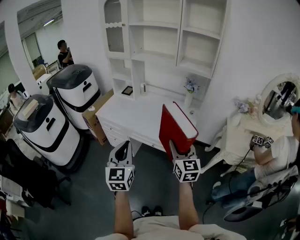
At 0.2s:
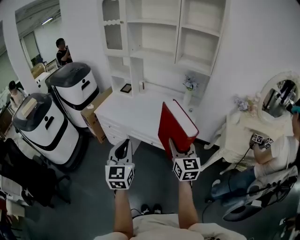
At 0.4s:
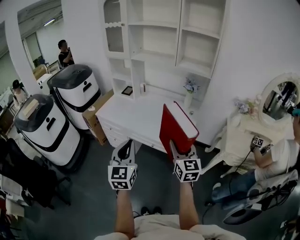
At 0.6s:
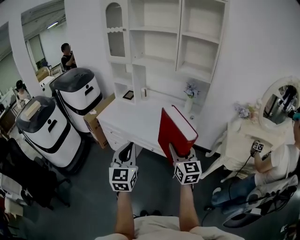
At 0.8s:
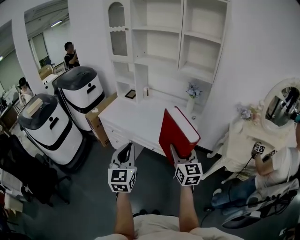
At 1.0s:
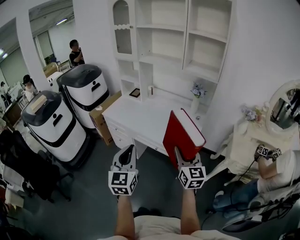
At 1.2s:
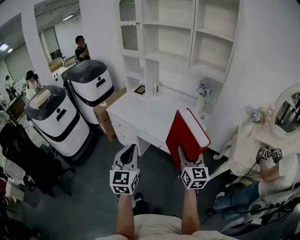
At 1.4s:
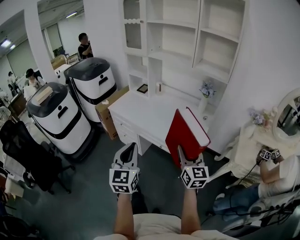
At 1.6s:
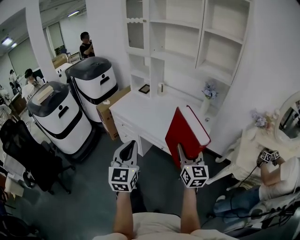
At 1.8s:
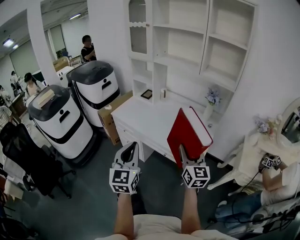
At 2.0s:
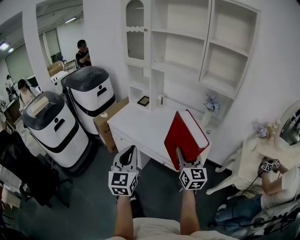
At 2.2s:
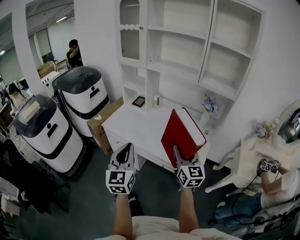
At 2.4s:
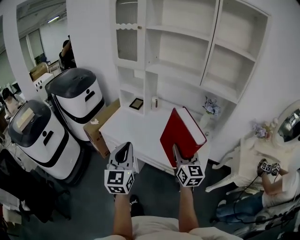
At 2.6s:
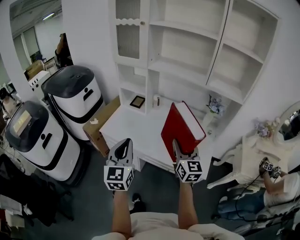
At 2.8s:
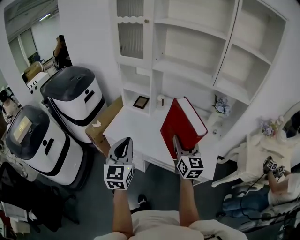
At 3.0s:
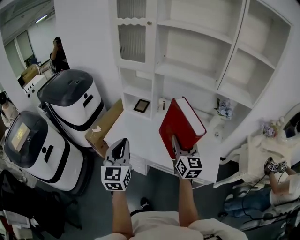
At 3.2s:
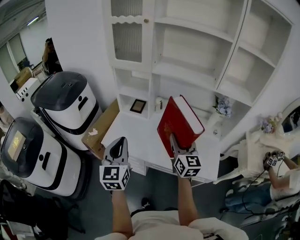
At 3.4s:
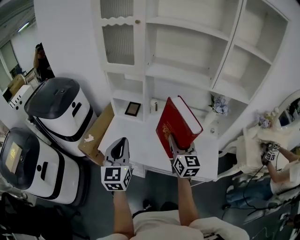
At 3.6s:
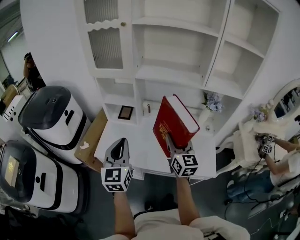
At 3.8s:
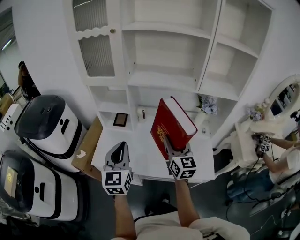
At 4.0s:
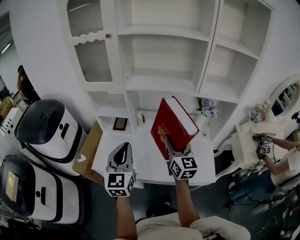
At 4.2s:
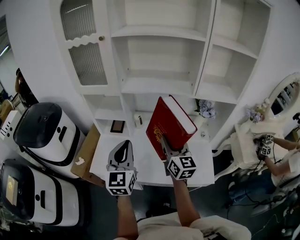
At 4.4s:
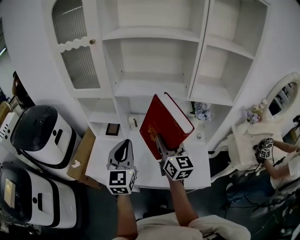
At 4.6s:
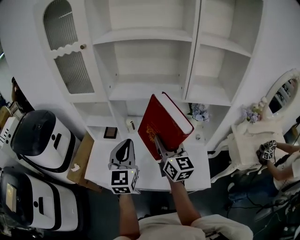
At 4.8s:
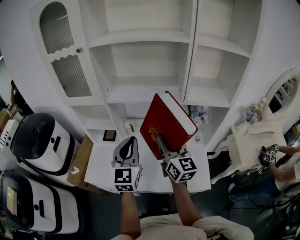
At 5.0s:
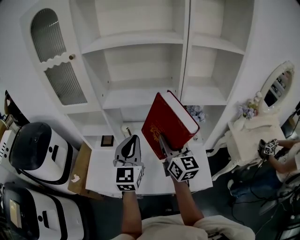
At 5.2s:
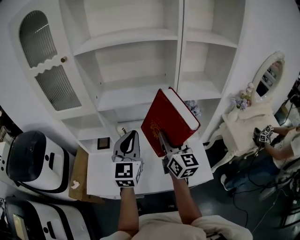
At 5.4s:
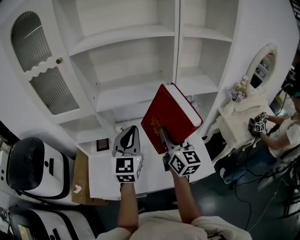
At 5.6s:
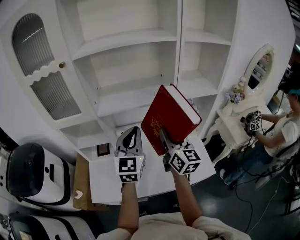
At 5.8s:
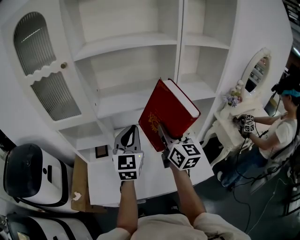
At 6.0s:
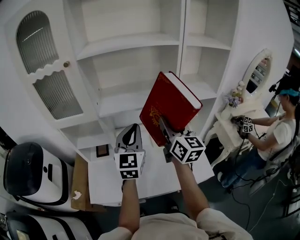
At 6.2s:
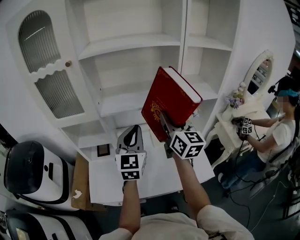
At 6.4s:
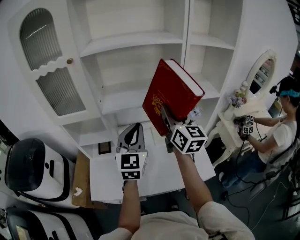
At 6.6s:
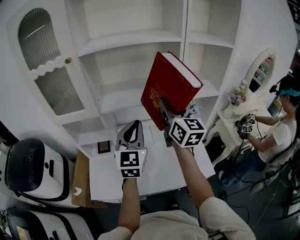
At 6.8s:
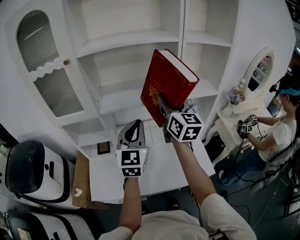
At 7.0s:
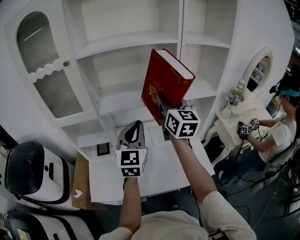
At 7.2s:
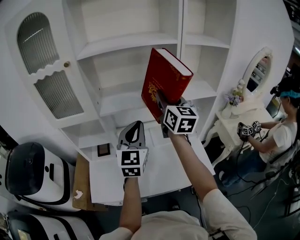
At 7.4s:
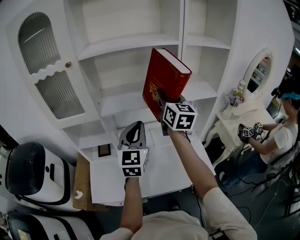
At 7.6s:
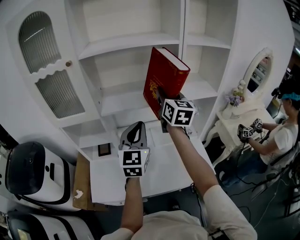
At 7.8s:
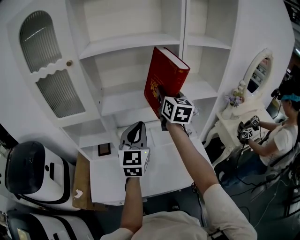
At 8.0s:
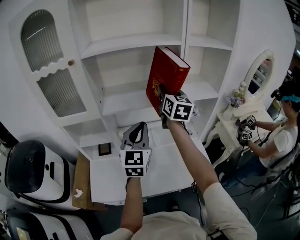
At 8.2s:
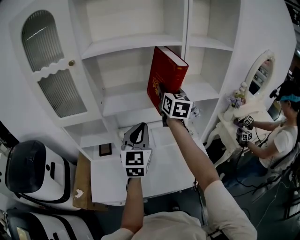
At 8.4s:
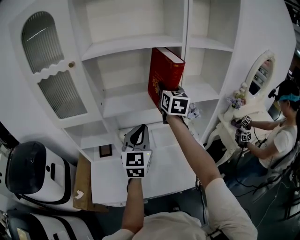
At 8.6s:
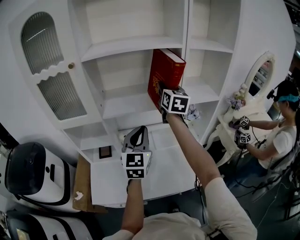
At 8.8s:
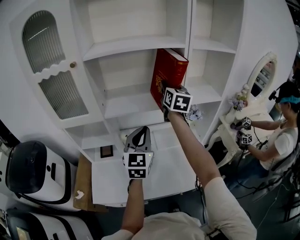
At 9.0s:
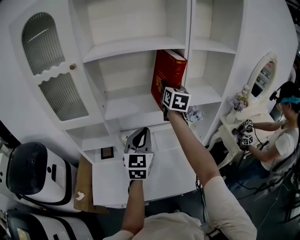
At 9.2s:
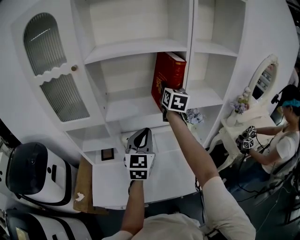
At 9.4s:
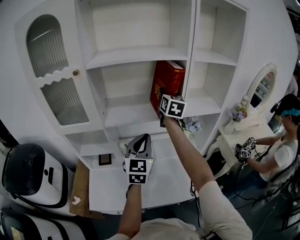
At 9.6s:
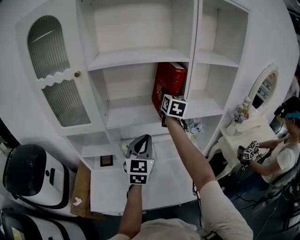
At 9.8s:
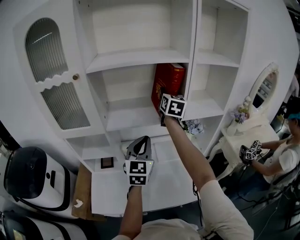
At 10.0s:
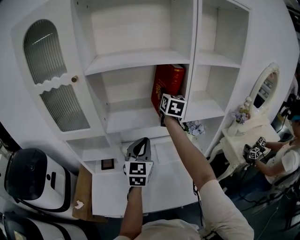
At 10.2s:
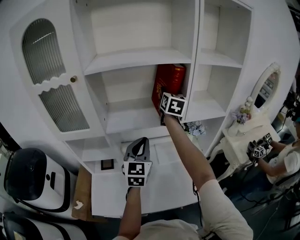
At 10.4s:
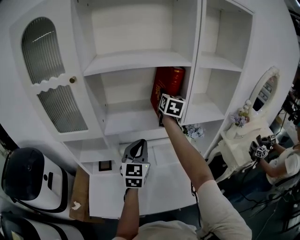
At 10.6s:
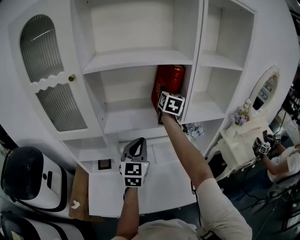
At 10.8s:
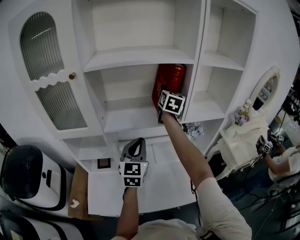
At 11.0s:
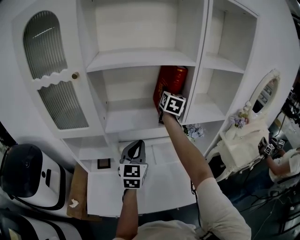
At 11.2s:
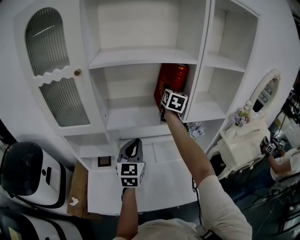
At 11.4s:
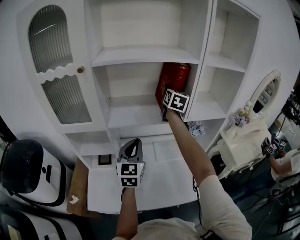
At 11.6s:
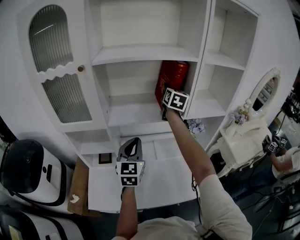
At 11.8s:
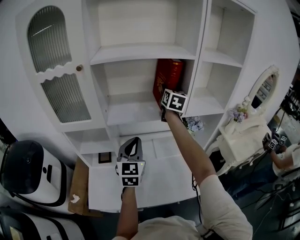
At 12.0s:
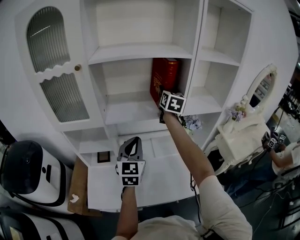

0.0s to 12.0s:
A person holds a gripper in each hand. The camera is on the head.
0.0s to 1.6s: The grippers make only small movements.
1.6s to 3.0s: The grippers both shift forward and to the left by approximately 40 cm.
3.0s to 4.4s: The right gripper is displaced forward by about 15 cm, while the left gripper goes approximately 20 cm forward and to the right.
4.4s to 6.0s: The right gripper shifts about 10 cm upward and forward; the left gripper travels forward and upward by about 15 cm.
6.0s to 7.6s: The right gripper shifts roughly 10 cm forward and upward.
7.6s to 9.0s: The right gripper heads forward, covering some 10 cm.
9.0s to 10.4s: The right gripper shifts about 5 cm forward. Meanwhile the left gripper ends up approximately 5 cm from where it was.
10.4s to 12.0s: The left gripper ends up approximately 5 cm from where it was.

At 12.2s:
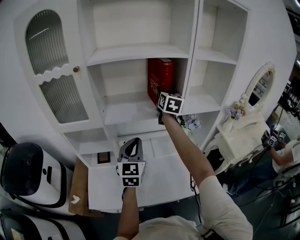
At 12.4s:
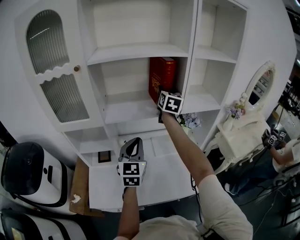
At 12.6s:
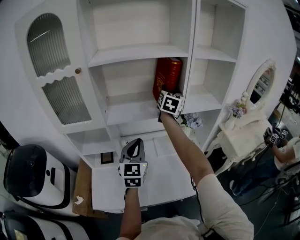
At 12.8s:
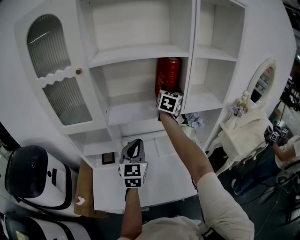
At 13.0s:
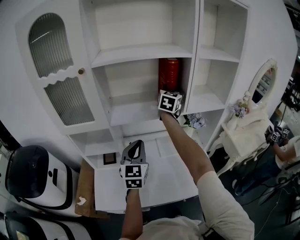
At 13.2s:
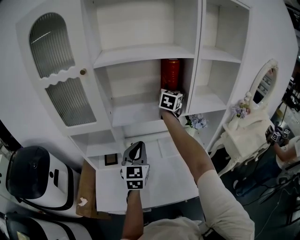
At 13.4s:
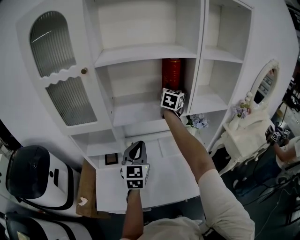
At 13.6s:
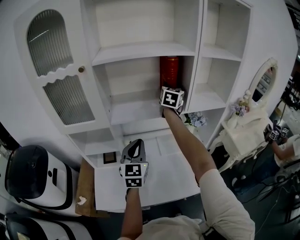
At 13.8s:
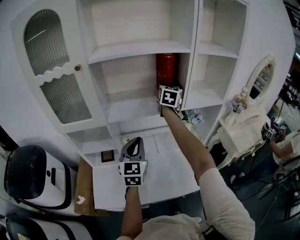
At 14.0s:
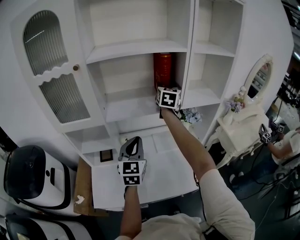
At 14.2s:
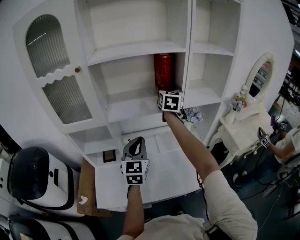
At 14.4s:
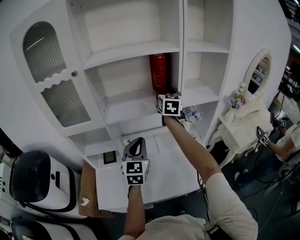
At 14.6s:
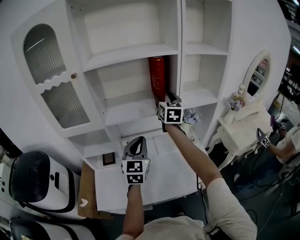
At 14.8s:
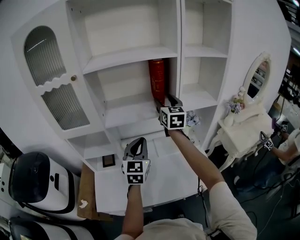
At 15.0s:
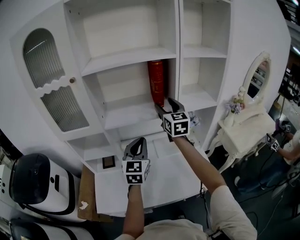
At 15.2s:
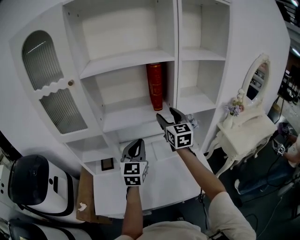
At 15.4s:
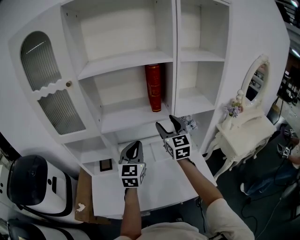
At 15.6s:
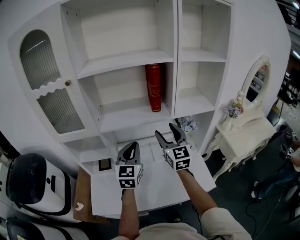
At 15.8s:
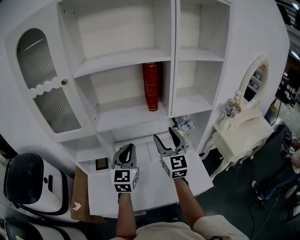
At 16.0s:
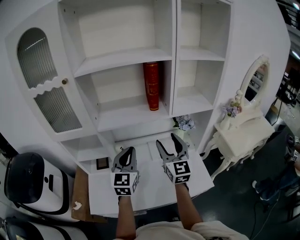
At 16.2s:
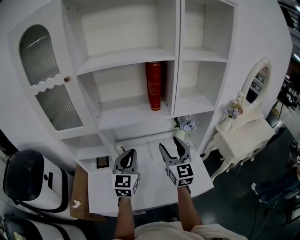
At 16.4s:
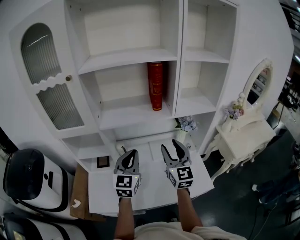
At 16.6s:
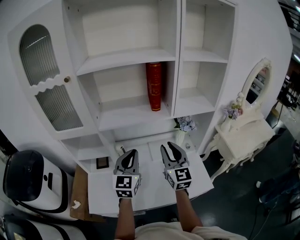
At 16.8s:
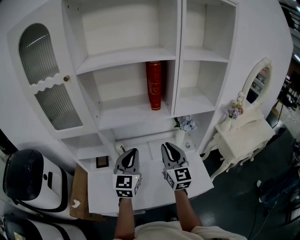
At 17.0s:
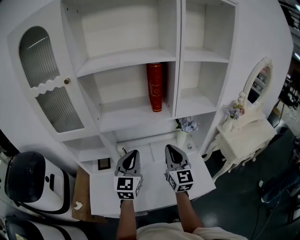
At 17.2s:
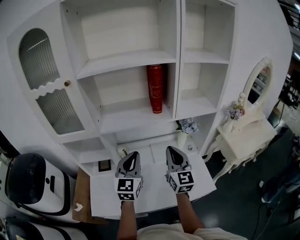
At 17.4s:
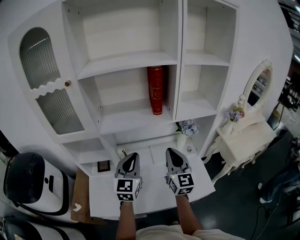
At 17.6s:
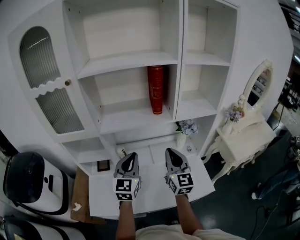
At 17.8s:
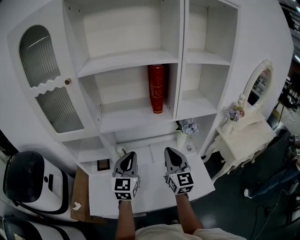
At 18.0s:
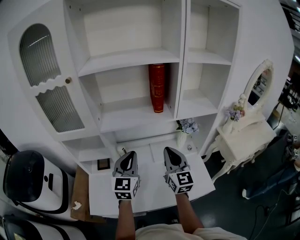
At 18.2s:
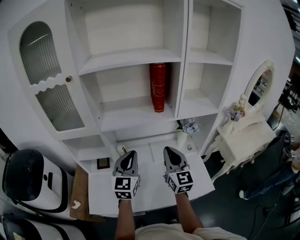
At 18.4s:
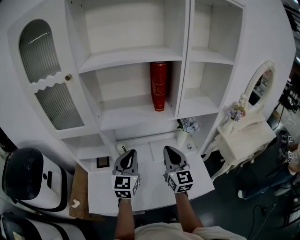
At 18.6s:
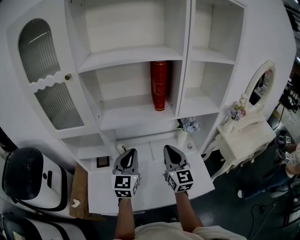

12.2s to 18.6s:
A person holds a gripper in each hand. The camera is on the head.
12.2s to 13.8s: The grippers stay close to where they were, moving slightly.
13.8s to 15.4s: The right gripper moves backward, some 15 cm, and turns by about 30 degrees, while the left gripper changes place by approximately 5 cm.
15.4s to 17.0s: The right gripper travels backward and downward by approximately 10 cm, and closes up.
17.0s to 18.6s: There are only small adjustments of the grippers.

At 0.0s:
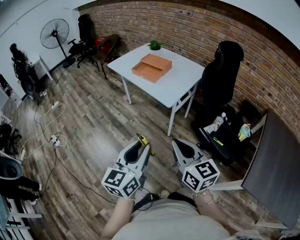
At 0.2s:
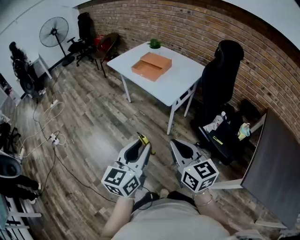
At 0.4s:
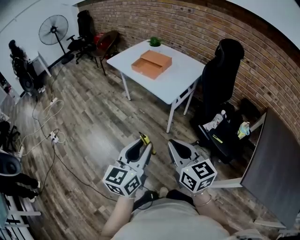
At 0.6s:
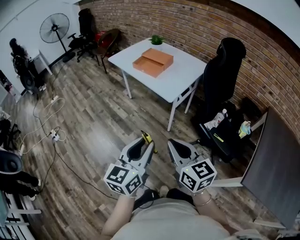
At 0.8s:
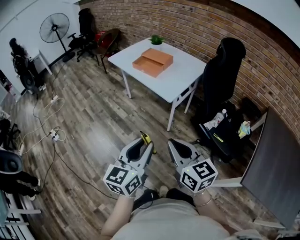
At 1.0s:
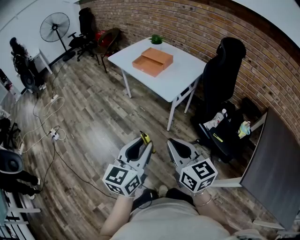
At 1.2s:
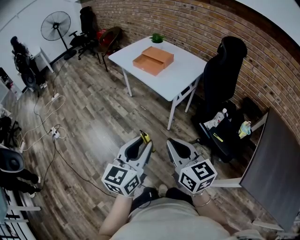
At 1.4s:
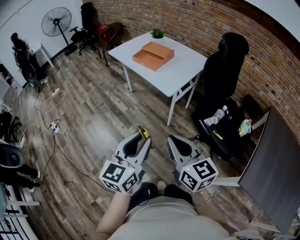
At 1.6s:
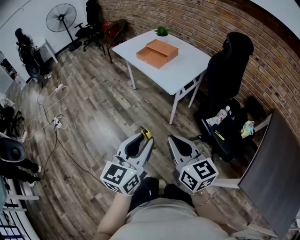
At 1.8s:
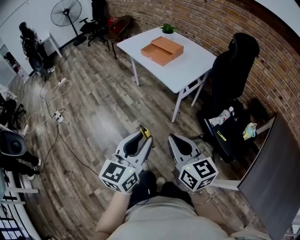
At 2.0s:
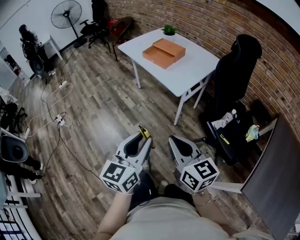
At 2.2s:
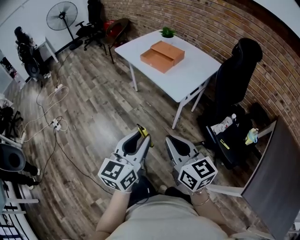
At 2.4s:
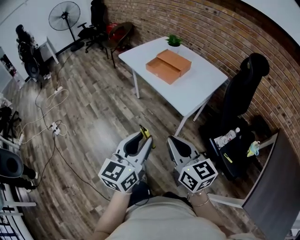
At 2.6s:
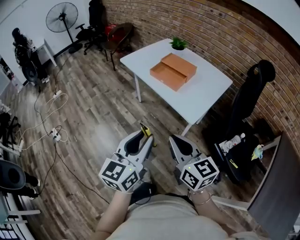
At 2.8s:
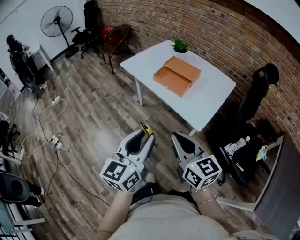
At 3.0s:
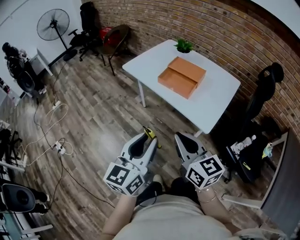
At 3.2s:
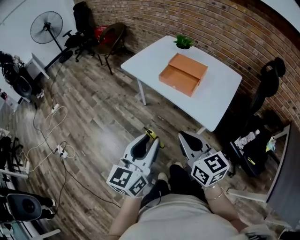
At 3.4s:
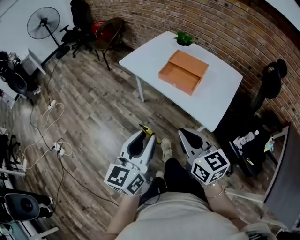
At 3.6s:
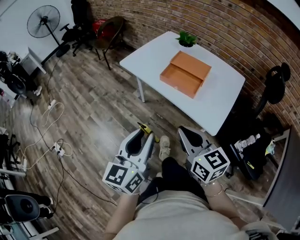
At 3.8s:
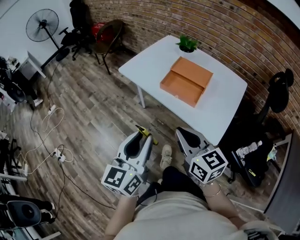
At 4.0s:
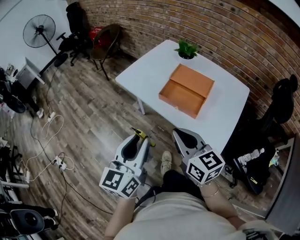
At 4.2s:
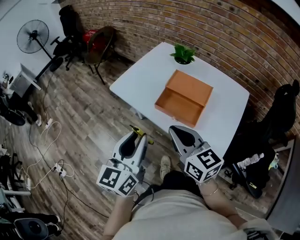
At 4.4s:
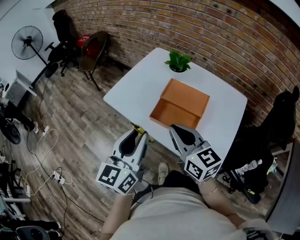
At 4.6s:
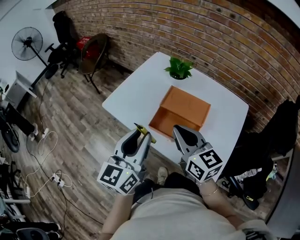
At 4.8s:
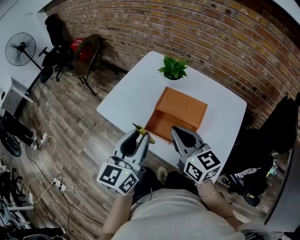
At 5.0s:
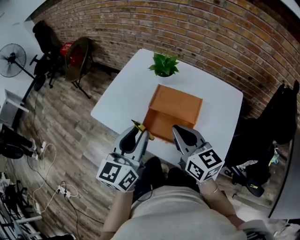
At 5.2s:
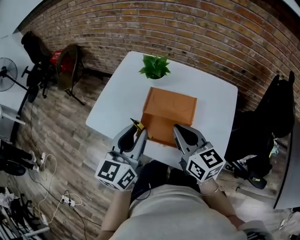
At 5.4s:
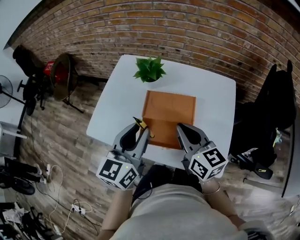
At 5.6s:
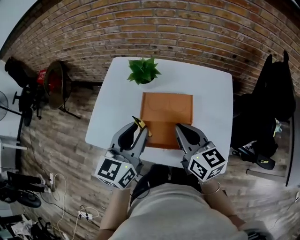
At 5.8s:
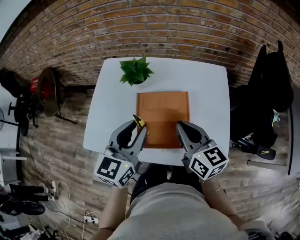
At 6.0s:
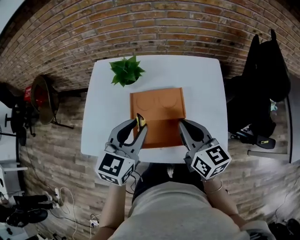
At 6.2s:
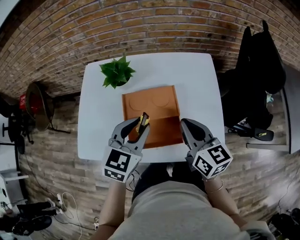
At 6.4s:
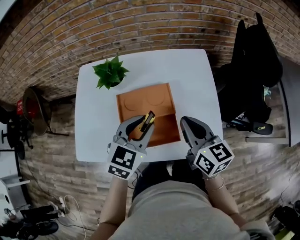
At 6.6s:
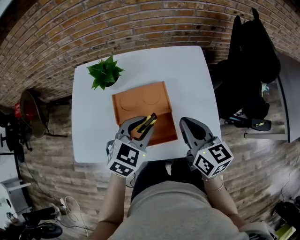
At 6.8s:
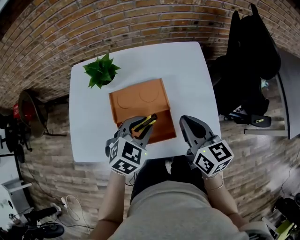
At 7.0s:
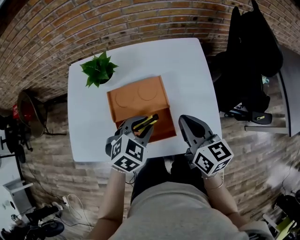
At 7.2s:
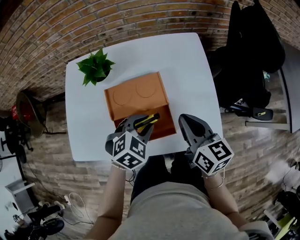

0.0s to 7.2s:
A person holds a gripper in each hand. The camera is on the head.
0.0s to 1.4s: The grippers stay close to where they were, moving slightly.
1.4s to 2.8s: The two grippers go roughly 30 cm forward and to the left.
2.8s to 4.4s: Both grippers travel together forward, roughly 40 cm.
4.4s to 5.8s: The left gripper changes place by about 20 cm, and rotates roughly 40 degrees. The right gripper shifts by some 15 cm, and turns by approximately 30 degrees.
5.8s to 7.2s: The left gripper moves downward and to the right, approximately 20 cm, and angles its fingers downward, by some 40 degrees. The right gripper heads to the right and downward, covering about 10 cm.
